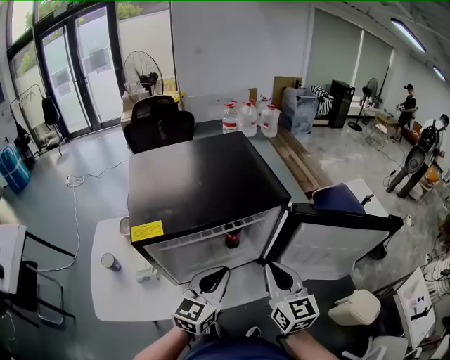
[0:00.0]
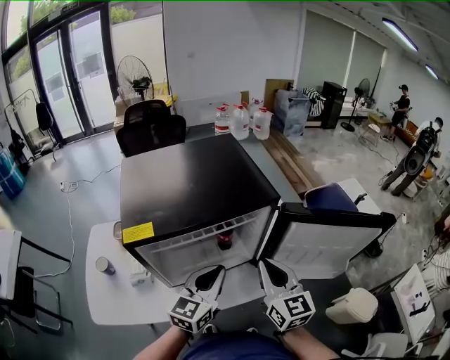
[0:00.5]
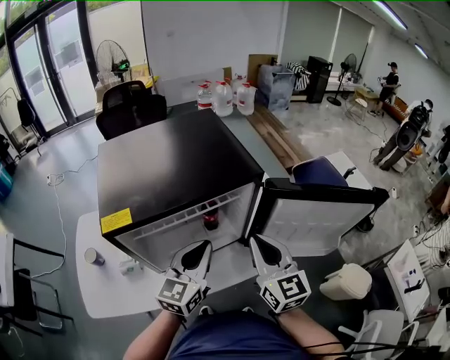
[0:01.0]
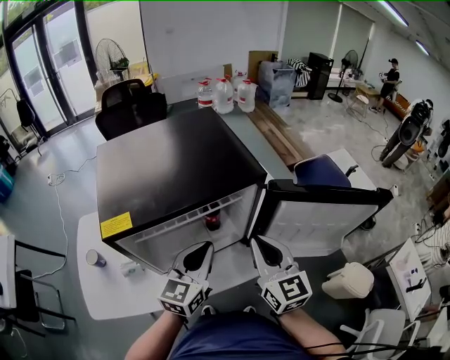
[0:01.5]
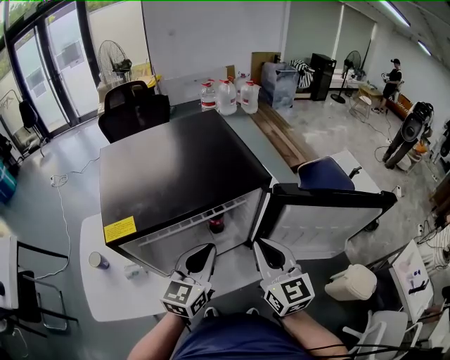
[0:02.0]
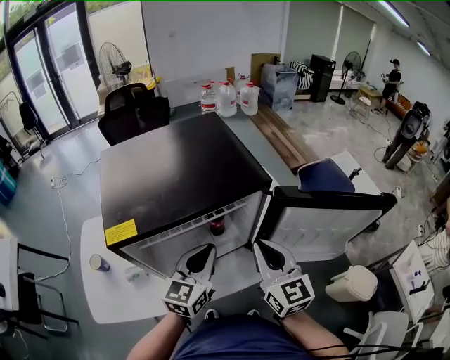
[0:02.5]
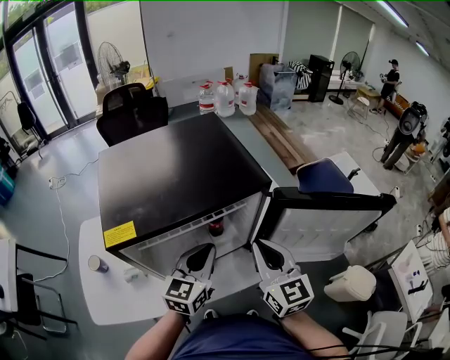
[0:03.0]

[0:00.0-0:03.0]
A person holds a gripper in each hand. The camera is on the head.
0:00.0 to 0:03.0: There are only small adjustments of the grippers.

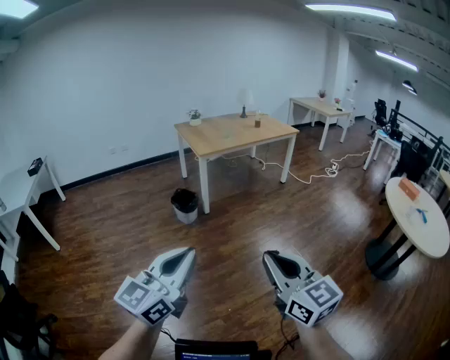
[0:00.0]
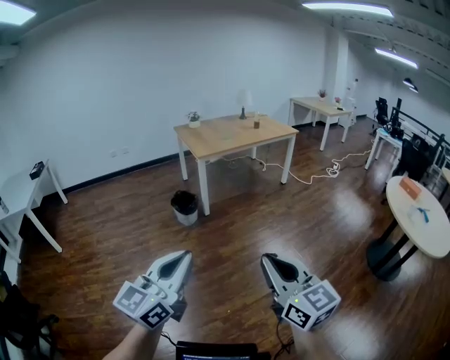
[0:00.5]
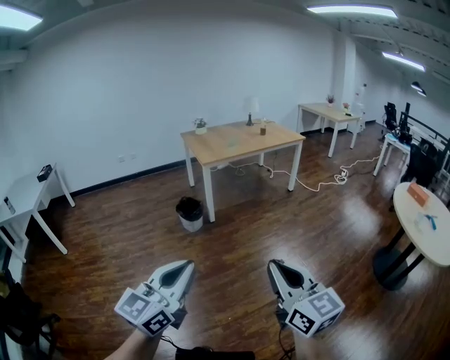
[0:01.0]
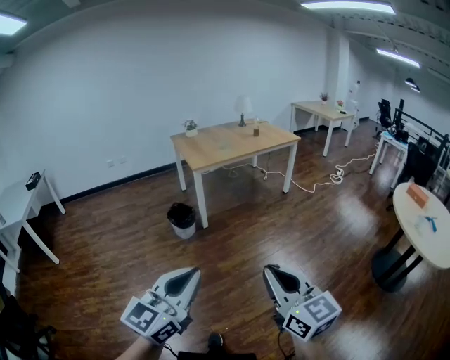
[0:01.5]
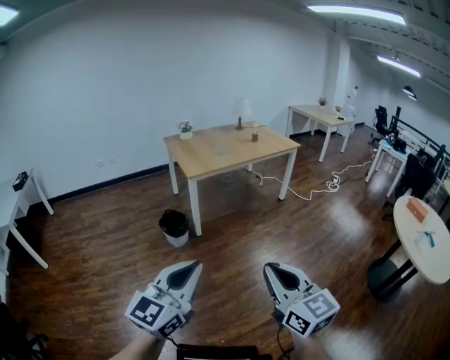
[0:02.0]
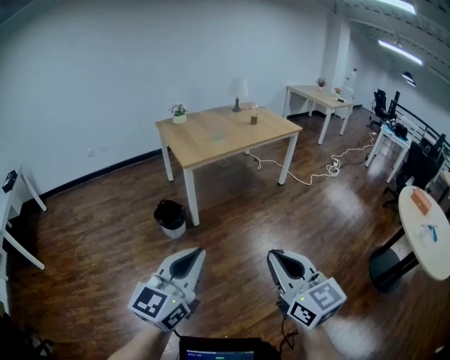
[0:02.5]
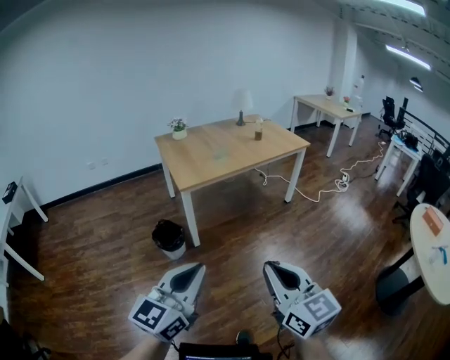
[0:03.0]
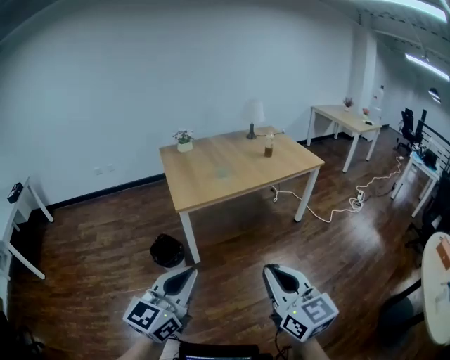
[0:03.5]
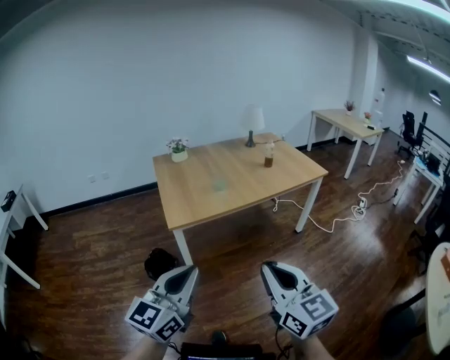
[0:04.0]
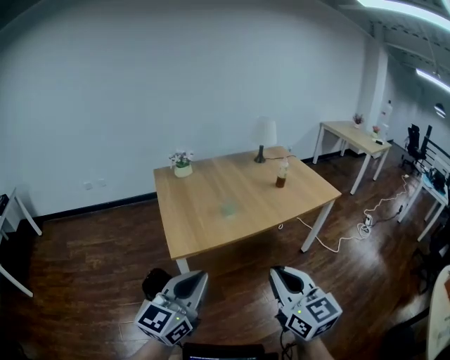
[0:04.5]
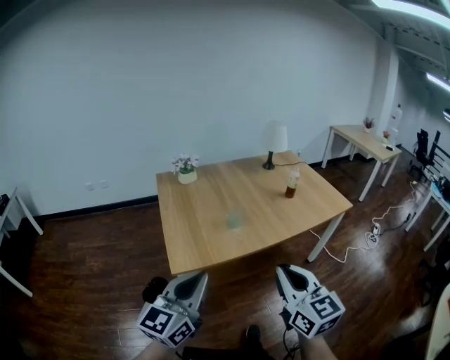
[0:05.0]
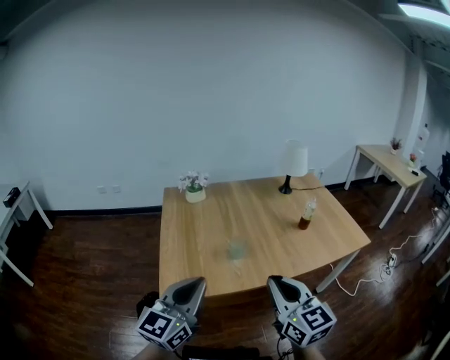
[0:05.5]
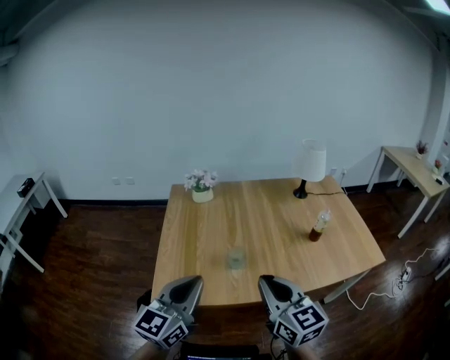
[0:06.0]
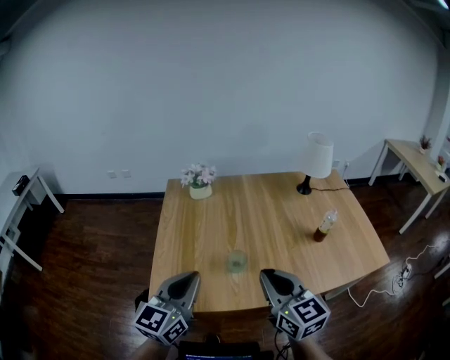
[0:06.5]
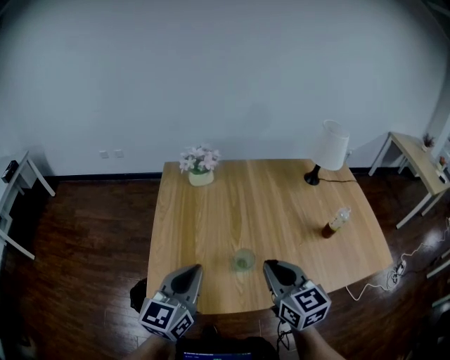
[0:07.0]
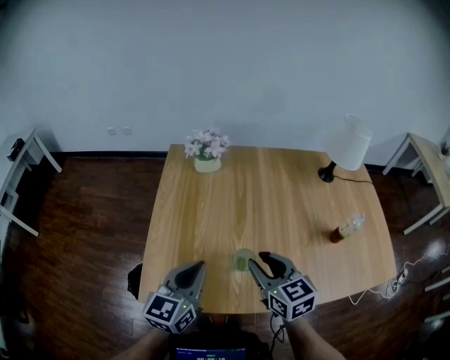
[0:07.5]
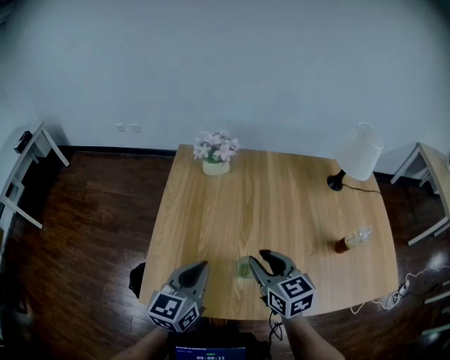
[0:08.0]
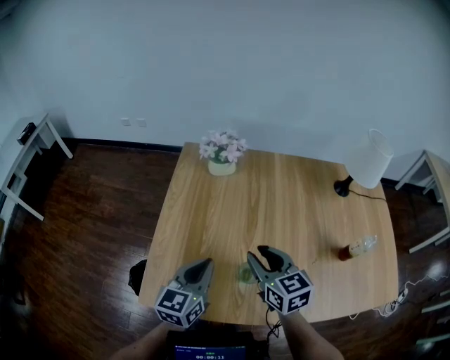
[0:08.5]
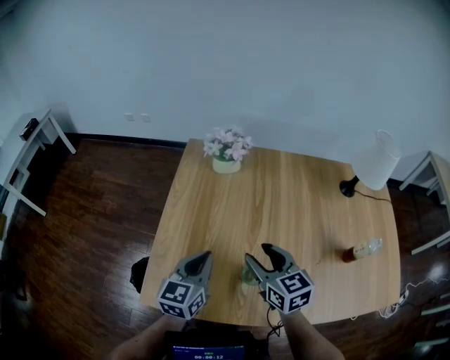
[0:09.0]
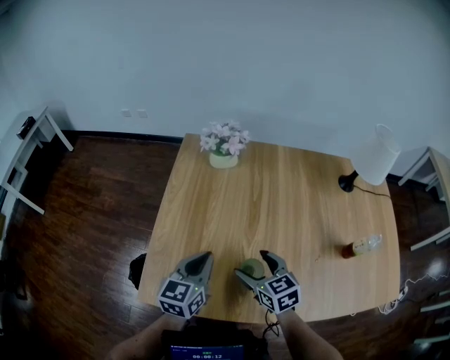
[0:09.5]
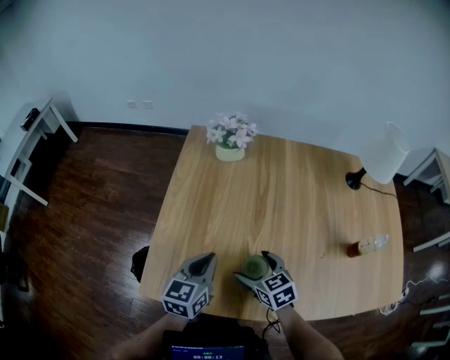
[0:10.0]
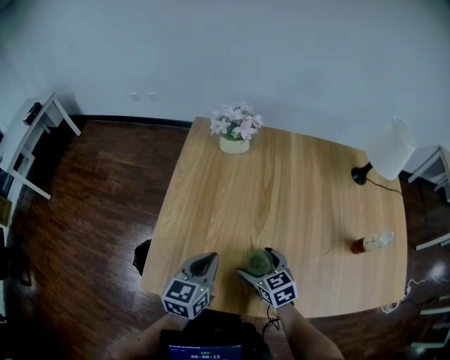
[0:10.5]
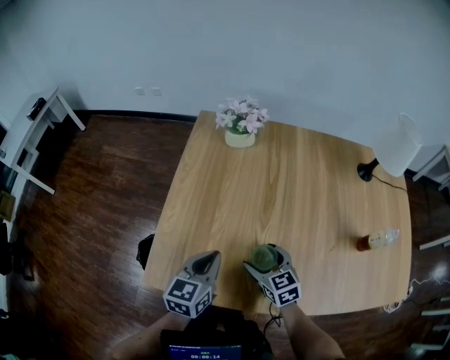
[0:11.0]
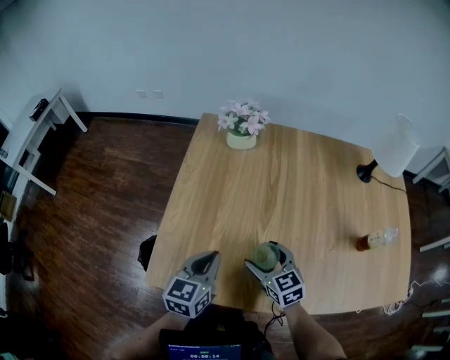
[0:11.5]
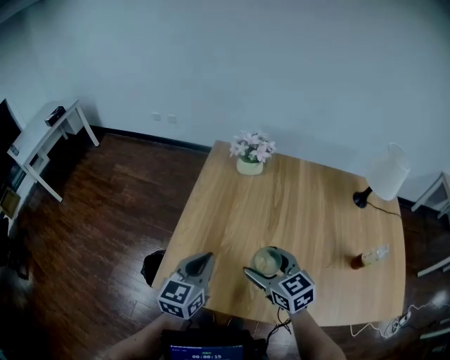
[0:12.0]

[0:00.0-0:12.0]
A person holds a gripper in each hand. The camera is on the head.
0:00.0 to 0:02.0: The two grippers go approximately 20 cm forward.
0:02.0 to 0:04.0: The pair of grippers is taken forward, some 50 cm.
0:04.0 to 0:06.0: The two grippers travel together, forward, roughly 50 cm.
0:06.0 to 0:08.0: Both grippers travel together forward and downward, about 25 cm. The right gripper changes its angle by roughly 20 degrees.
0:08.0 to 0:10.0: The left gripper shifts approximately 10 cm downward; the right gripper is displaced downward by approximately 15 cm, rotates approximately 20 degrees, and opens up.
0:10.0 to 0:12.0: The left gripper moves upward and to the left, some 10 cm. The right gripper heads upward, covering approximately 10 cm.

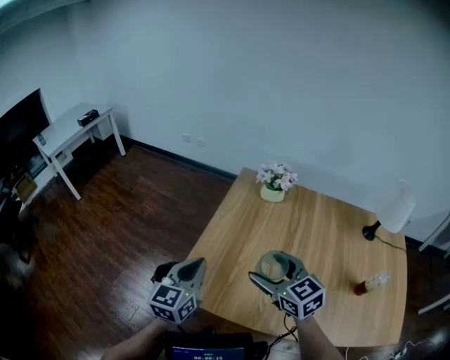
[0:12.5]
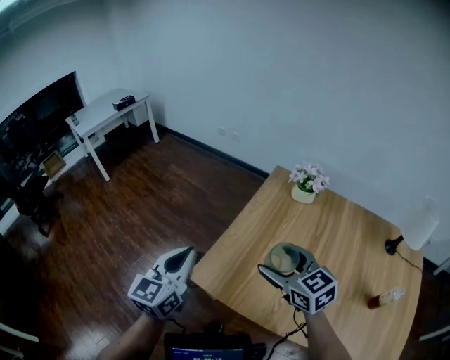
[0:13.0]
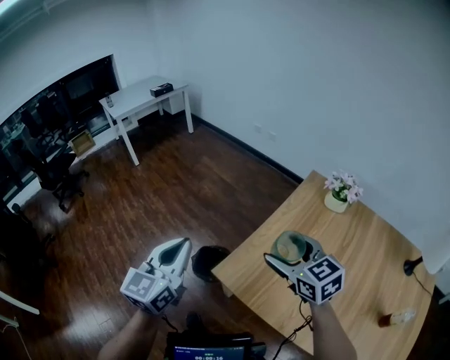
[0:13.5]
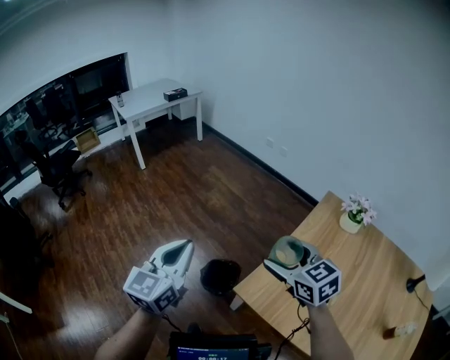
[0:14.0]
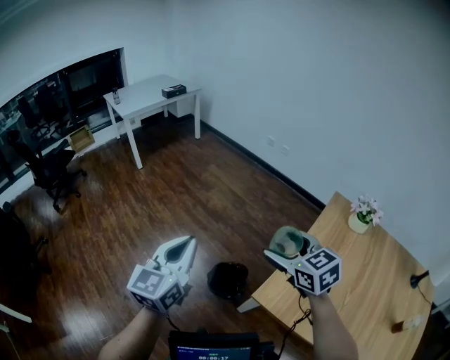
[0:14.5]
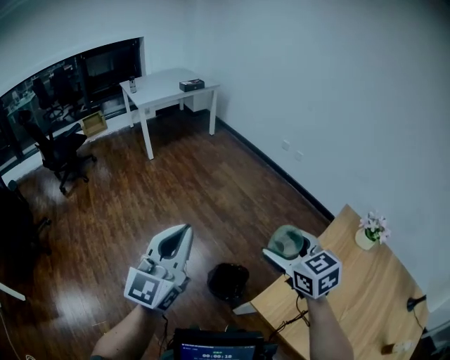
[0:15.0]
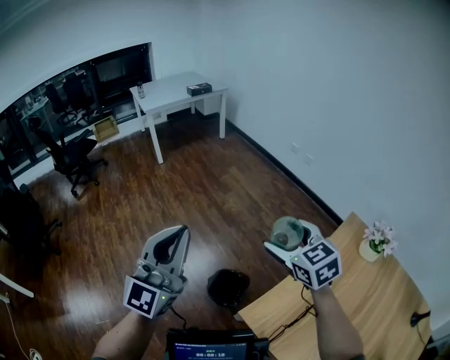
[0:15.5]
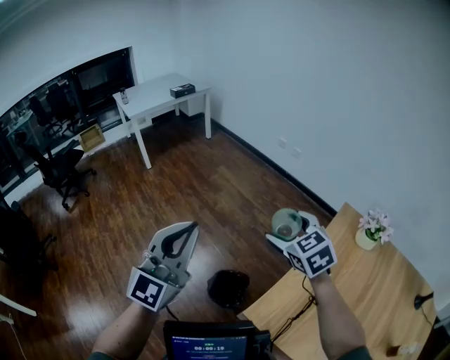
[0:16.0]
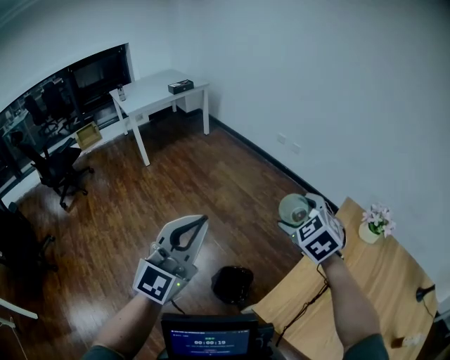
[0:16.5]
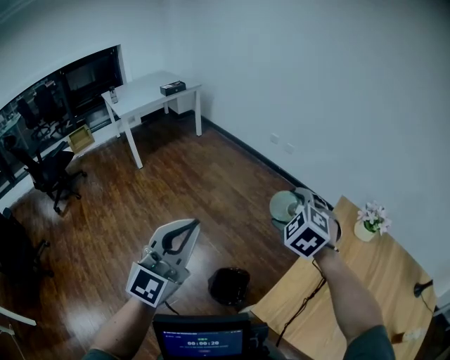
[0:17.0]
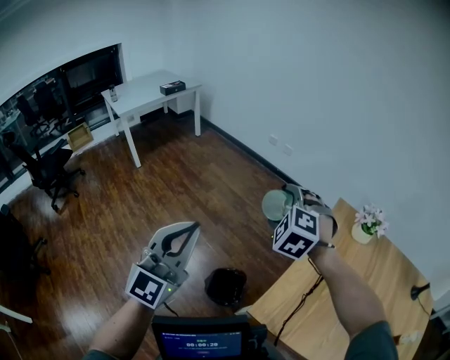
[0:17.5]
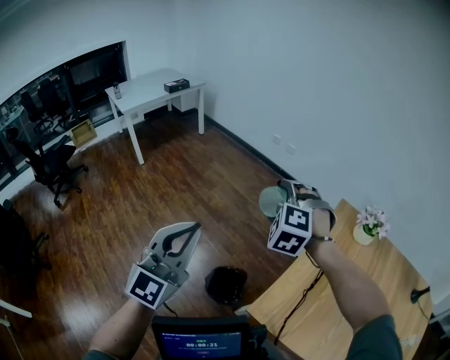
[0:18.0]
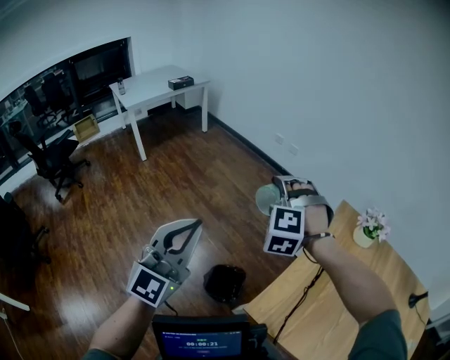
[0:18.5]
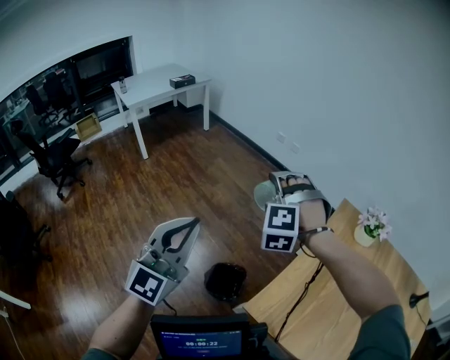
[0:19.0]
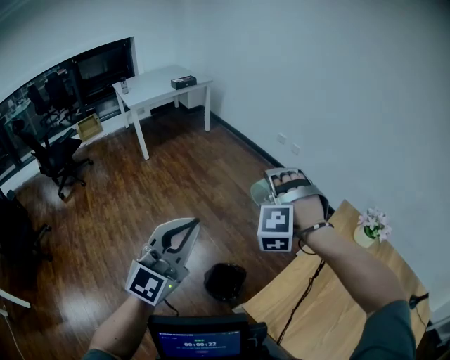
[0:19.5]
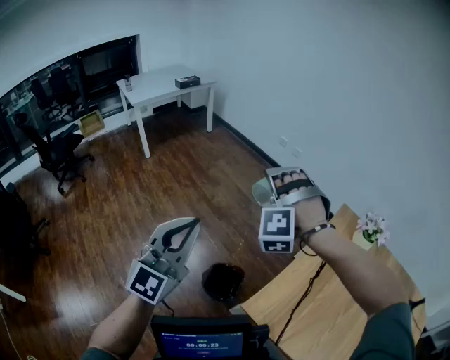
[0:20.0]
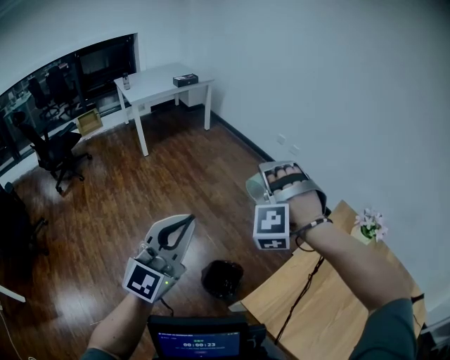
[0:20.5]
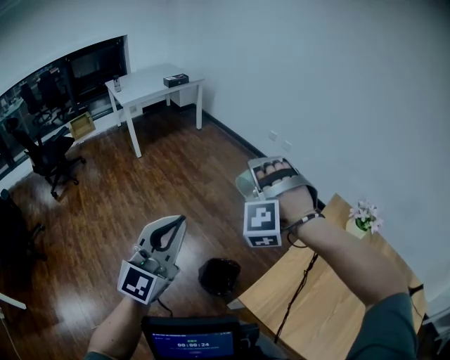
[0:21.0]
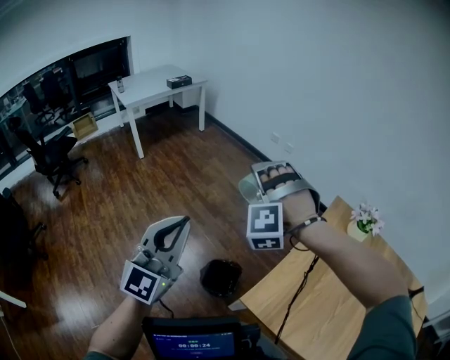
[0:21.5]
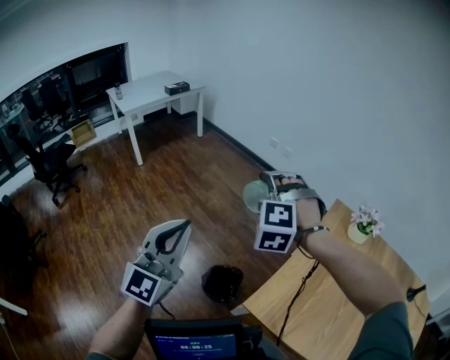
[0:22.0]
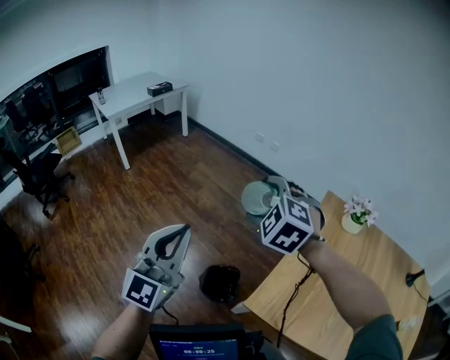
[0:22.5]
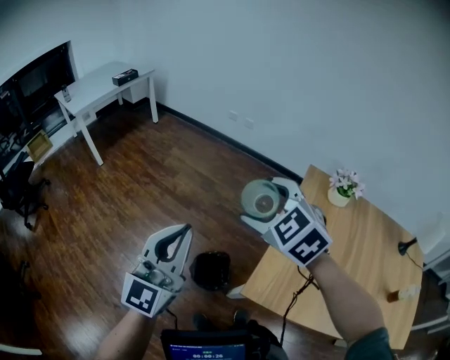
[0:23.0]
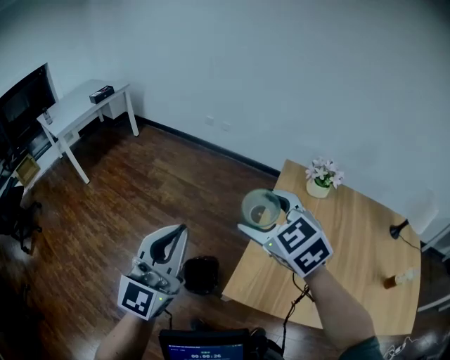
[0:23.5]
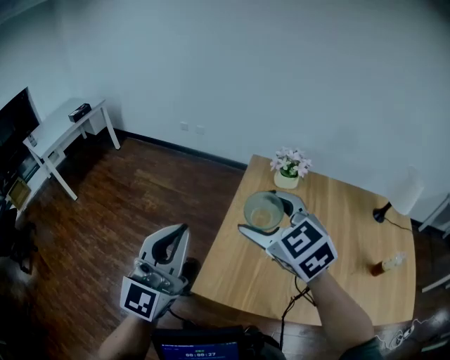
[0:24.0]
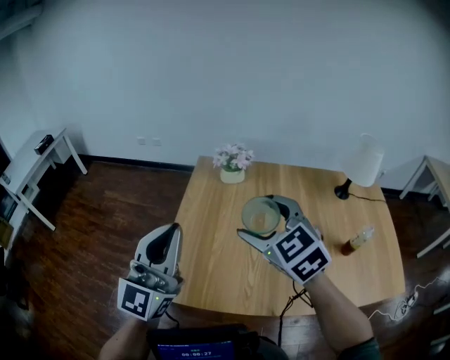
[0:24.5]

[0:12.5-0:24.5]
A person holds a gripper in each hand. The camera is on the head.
0:12.5 to 0:14.5: The left gripper shifts approximately 35 cm to the left, and swivels approximately 20 degrees. The right gripper moves to the left and forward, approximately 35 cm.
0:14.5 to 0:16.5: The right gripper goes about 15 cm forward, and rotates about 30 degrees. Meanwhile the left gripper moves upward, approximately 5 cm, and rotates about 30 degrees.
0:16.5 to 0:18.5: The right gripper is displaced to the left by some 5 cm, and twists about 40 degrees counterclockwise, seen from behind.
0:18.5 to 0:20.5: The right gripper turns by about 20 degrees.
0:20.5 to 0:22.5: The right gripper rotates around the line of its fingers by some 50 degrees, clockwise from behind.
0:22.5 to 0:24.5: The grippers both shift to the right by roughly 40 cm. The right gripper twists approximately 40 degrees clockwise, seen from behind; the left gripper swivels roughly 30 degrees.
